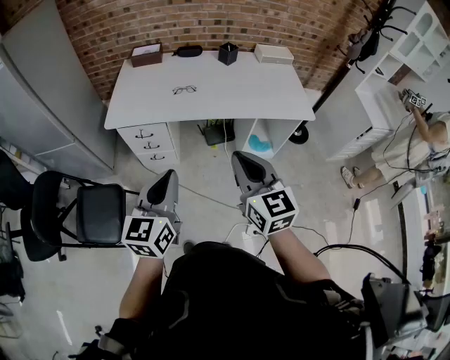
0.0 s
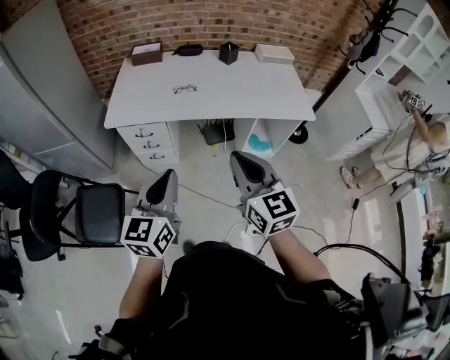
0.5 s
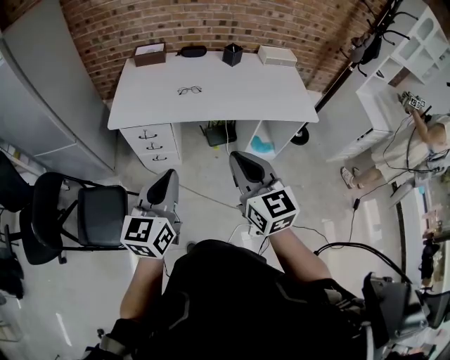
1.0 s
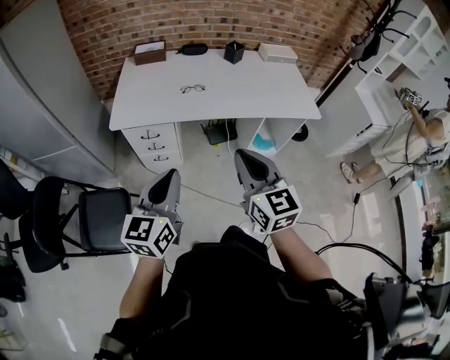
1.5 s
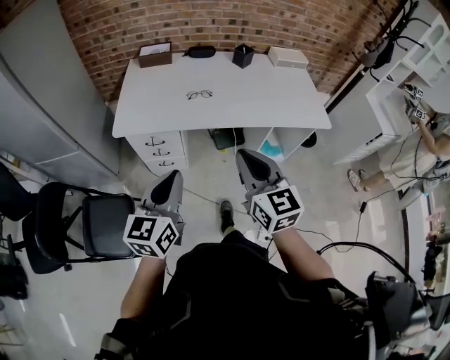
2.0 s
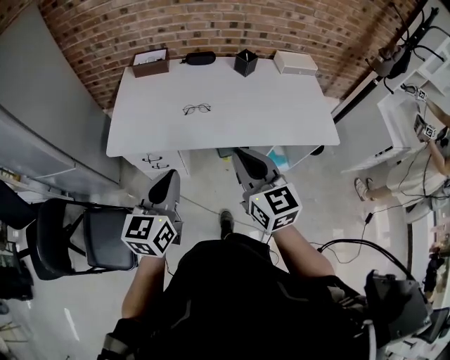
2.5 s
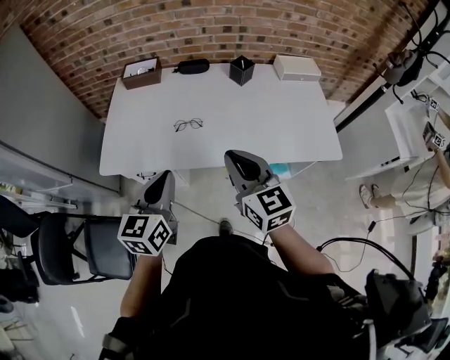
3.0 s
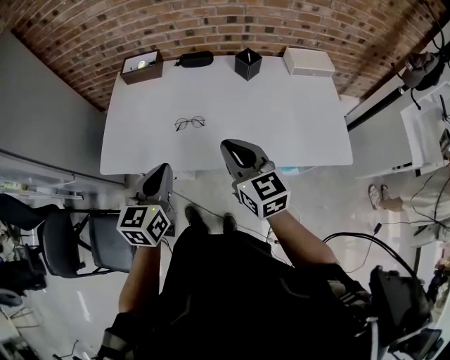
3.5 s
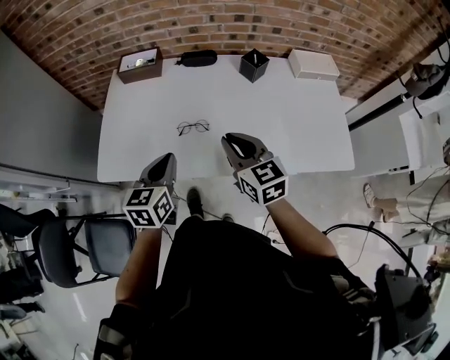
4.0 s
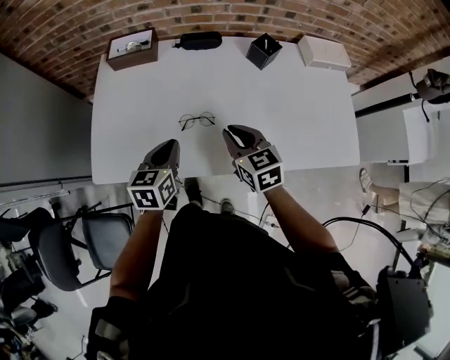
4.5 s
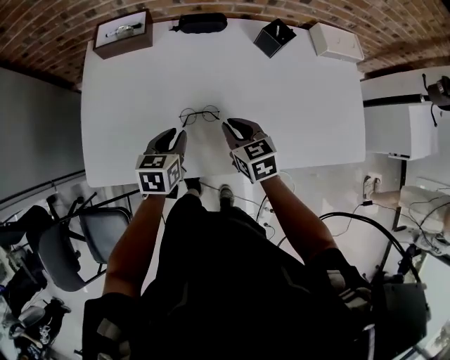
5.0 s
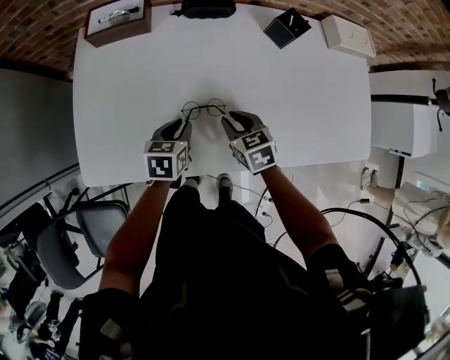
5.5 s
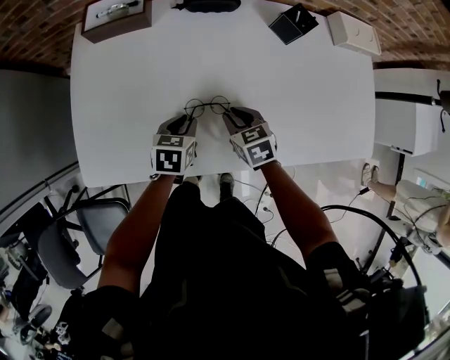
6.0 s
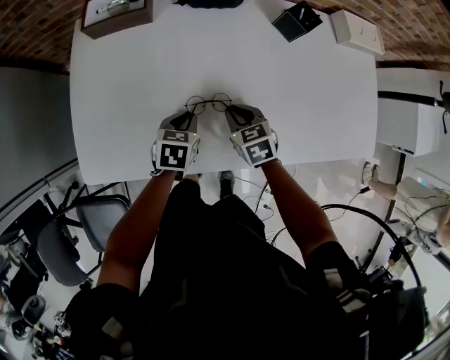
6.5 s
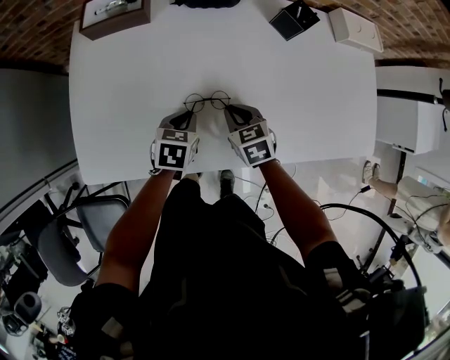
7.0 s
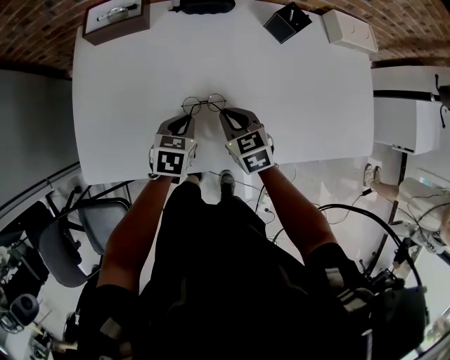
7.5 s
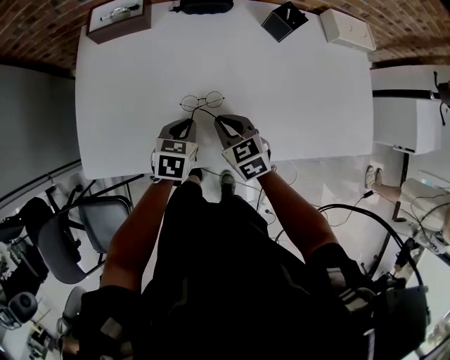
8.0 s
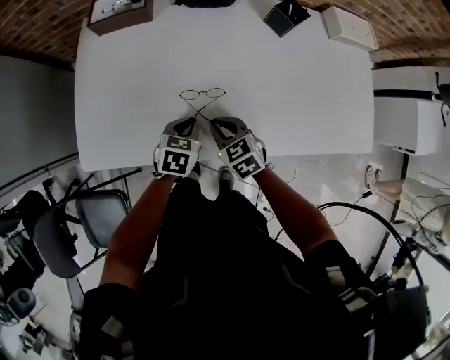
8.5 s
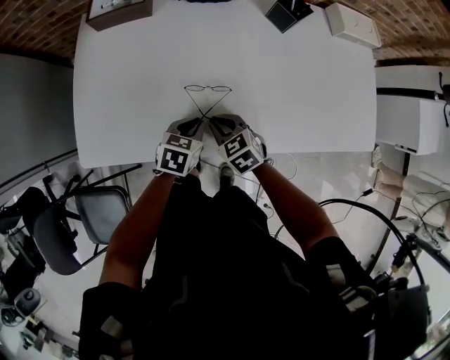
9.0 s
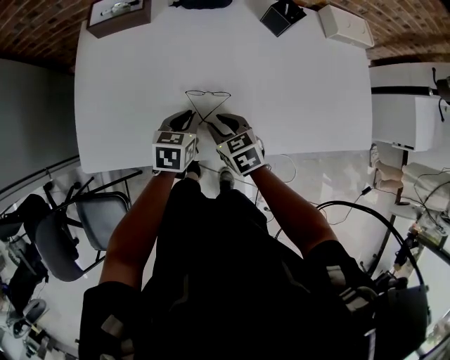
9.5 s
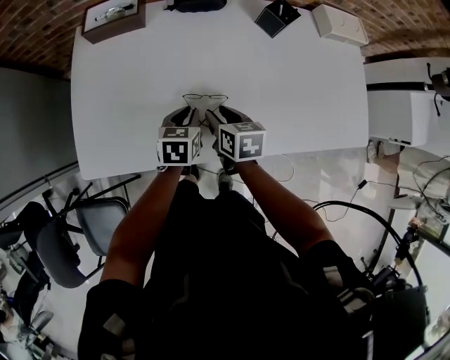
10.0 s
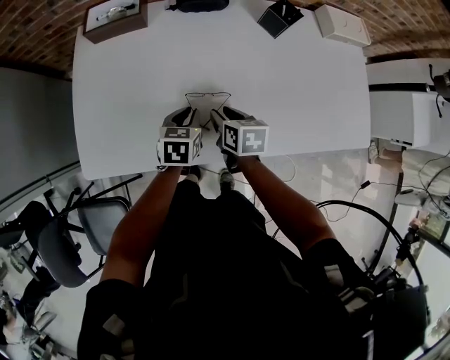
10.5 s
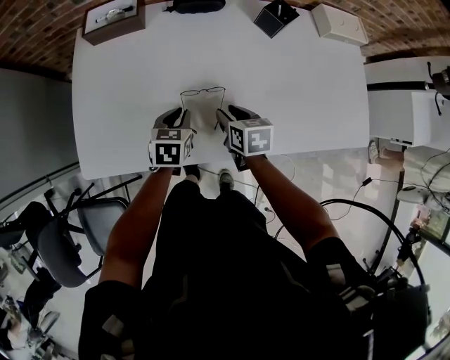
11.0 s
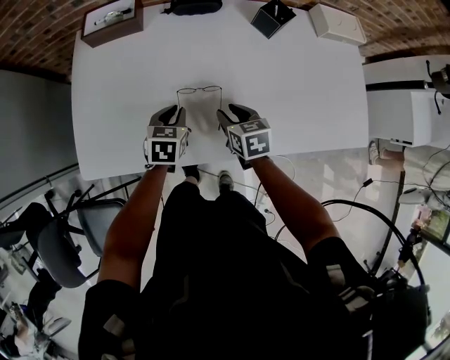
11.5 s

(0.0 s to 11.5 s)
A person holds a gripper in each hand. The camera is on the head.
0.0 s - 2.0 s: Both grippers travel together forward and to the left, roughly 10 cm.
2.0 s - 4.0 s: The grippers both shift forward by roughly 35 cm.
4.0 s - 6.0 s: The two grippers go approximately 30 cm downward and forward. The left gripper turns by approximately 30 degrees. The right gripper angles its fingers downward, by approximately 30 degrees.
6.0 s - 7.5 s: The grippers make only small movements.
7.5 s - 9.5 s: The right gripper travels backward by approximately 5 cm.
9.5 s - 11.5 s: The right gripper goes approximately 5 cm to the right.

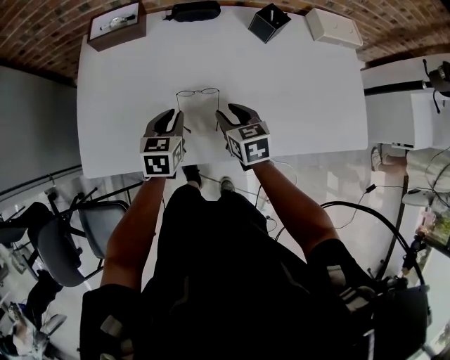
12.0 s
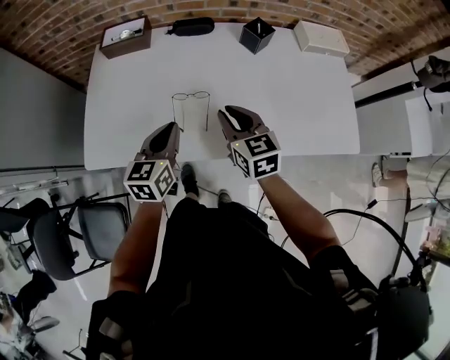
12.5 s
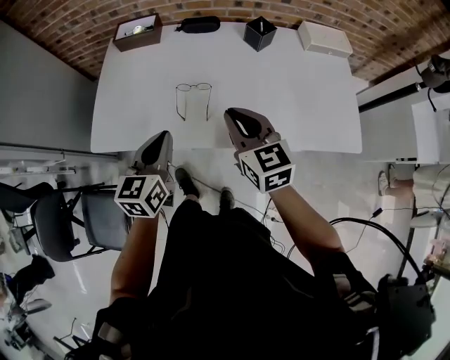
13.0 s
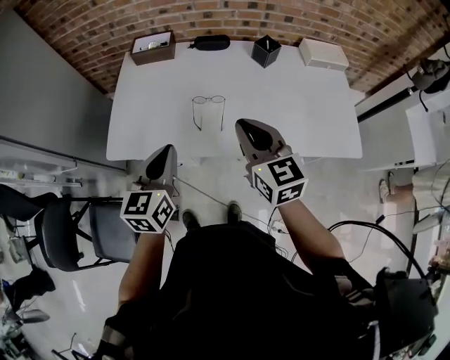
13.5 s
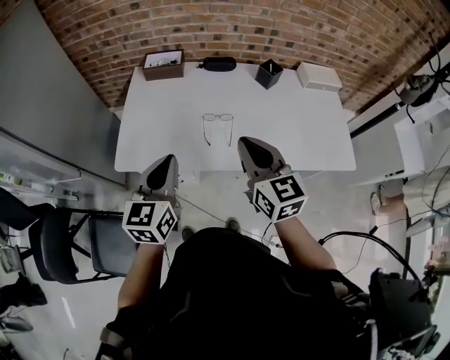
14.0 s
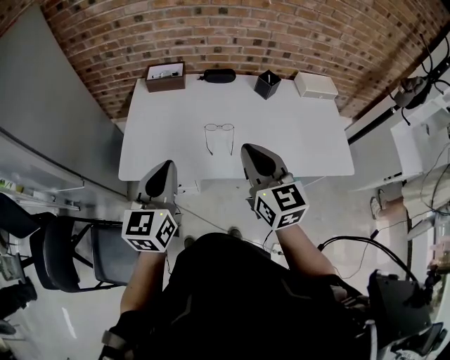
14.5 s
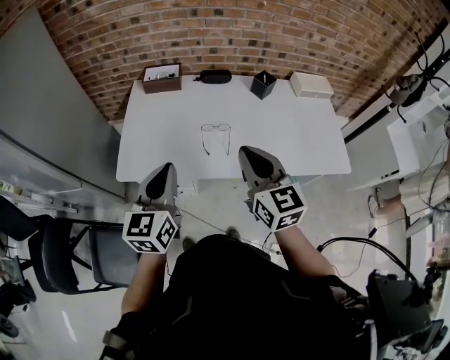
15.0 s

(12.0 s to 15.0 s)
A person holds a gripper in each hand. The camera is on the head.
12.0 s - 13.5 s: The grippers both shift upward and backward by roughly 30 cm. The right gripper changes its angle by about 30 degrees, and closes its fingers. Meanwhile the left gripper changes its angle by approximately 30 degrees.
13.5 s - 15.0 s: The two grippers go approximately 10 cm to the left and upward.

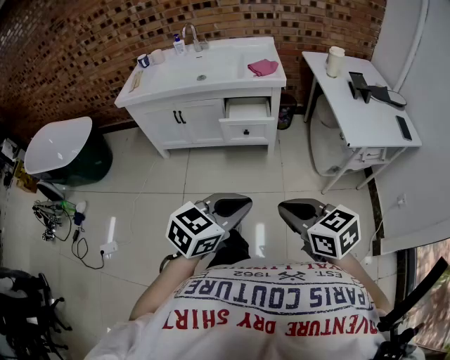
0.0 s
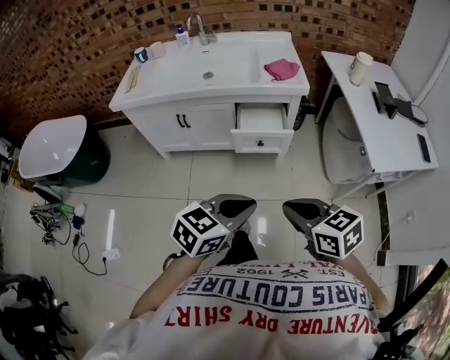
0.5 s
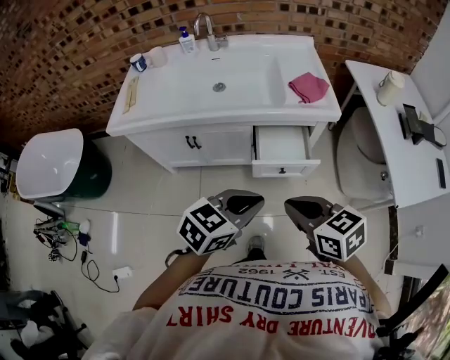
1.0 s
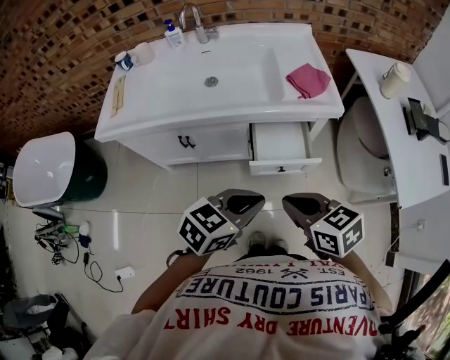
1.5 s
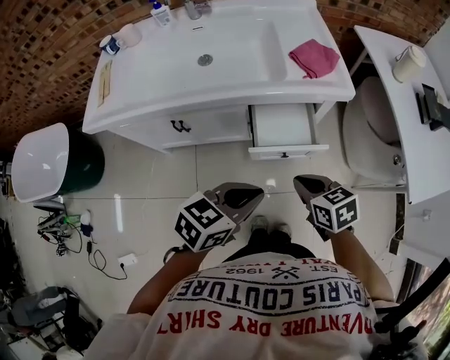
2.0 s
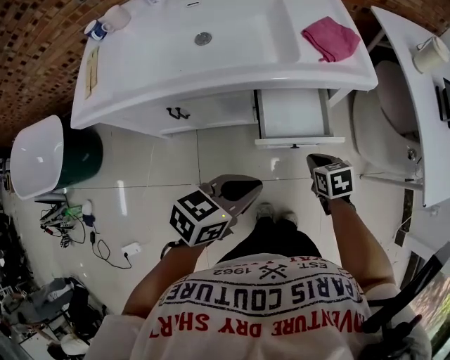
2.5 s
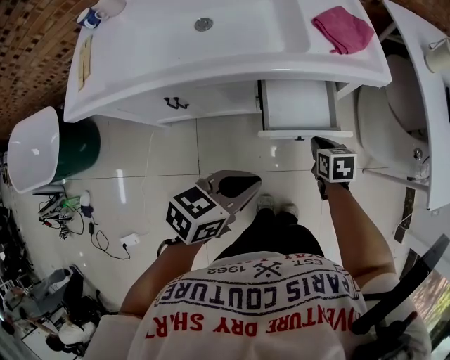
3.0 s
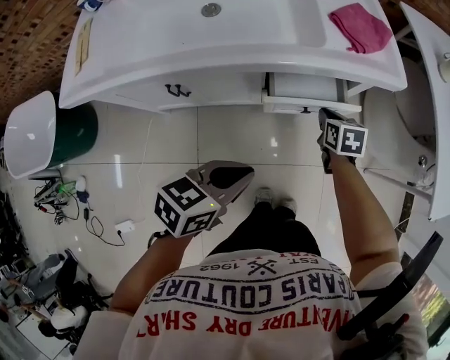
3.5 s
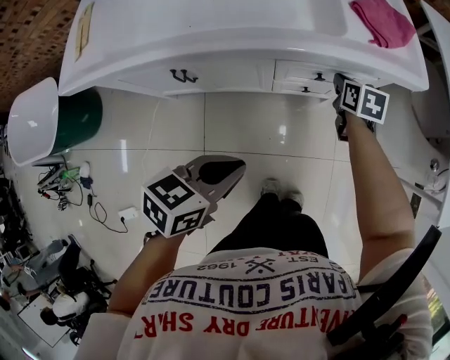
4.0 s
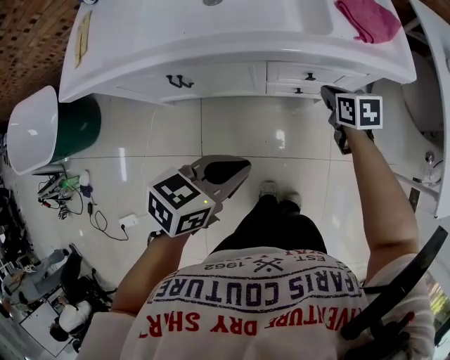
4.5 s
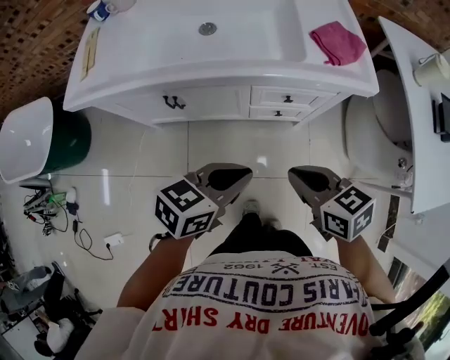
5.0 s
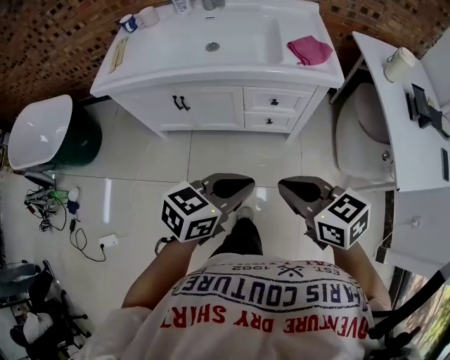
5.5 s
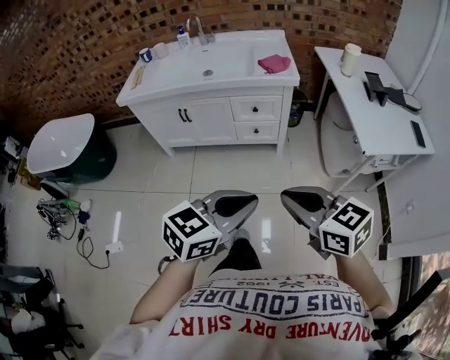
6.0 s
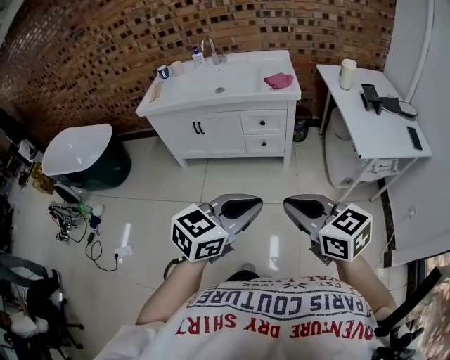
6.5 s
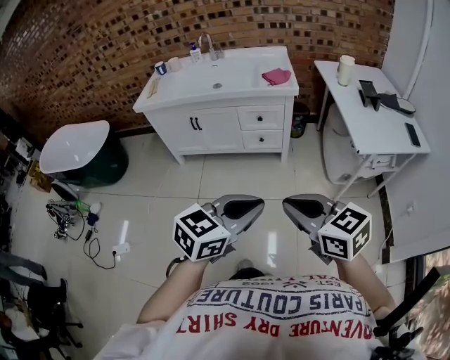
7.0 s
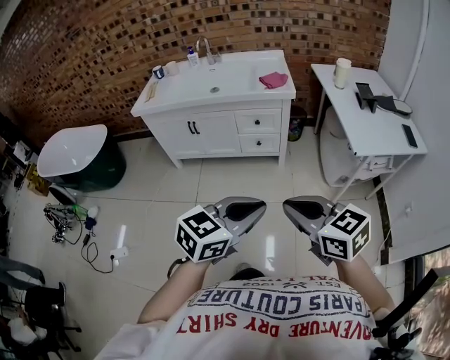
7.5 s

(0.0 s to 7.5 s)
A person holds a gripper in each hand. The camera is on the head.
0.0 s - 2.0 s: Both grippers are carried forward, some 50 cm. The right gripper turns by some 20 degrees.
2.0 s - 4.0 s: The right gripper travels forward and downward by approximately 30 cm, and turns by some 30 degrees, while the left gripper is displaced downward and to the left by roughly 15 cm.
4.0 s - 5.5 s: The left gripper moves backward, upward and to the right, about 25 cm. The right gripper travels backward and upward by about 50 cm, and turns by about 50 degrees.
5.5 s - 7.5 s: Both grippers travel together backward, approximately 35 cm.

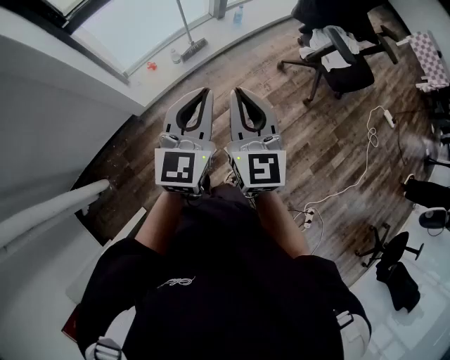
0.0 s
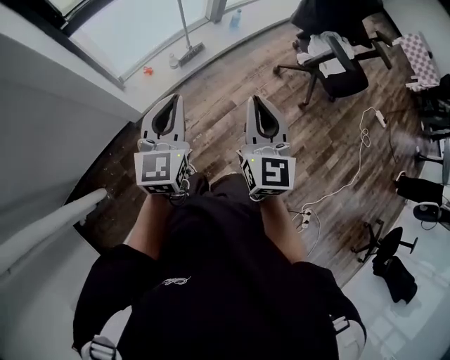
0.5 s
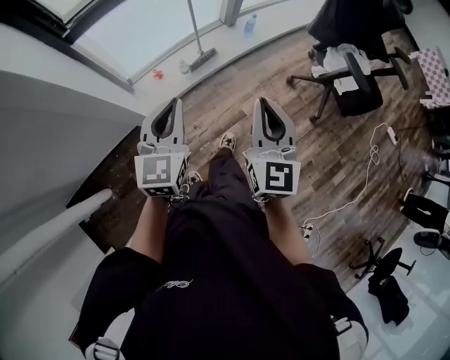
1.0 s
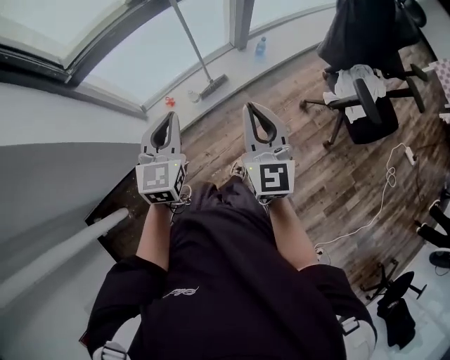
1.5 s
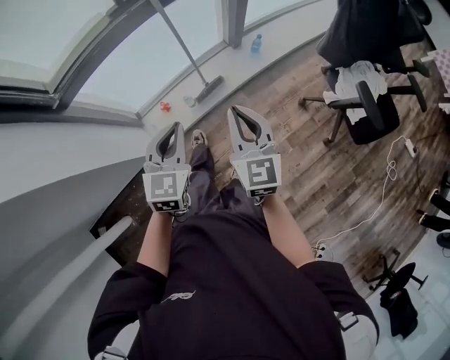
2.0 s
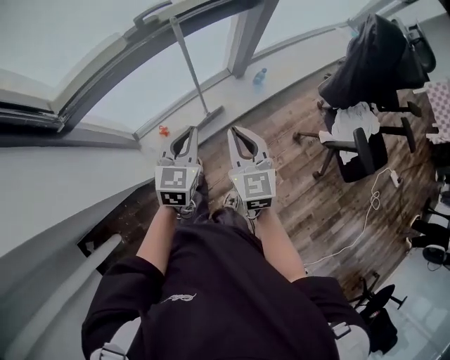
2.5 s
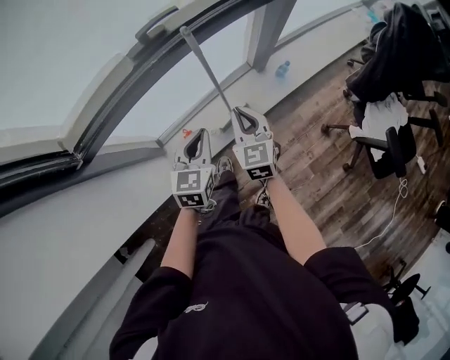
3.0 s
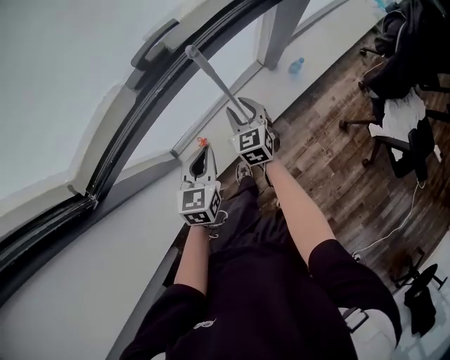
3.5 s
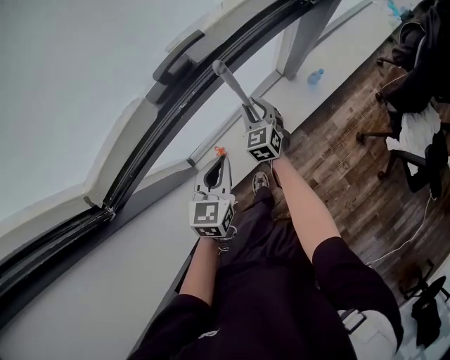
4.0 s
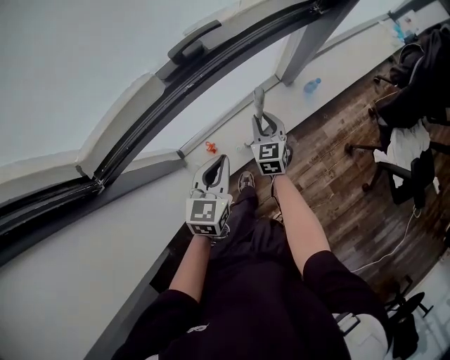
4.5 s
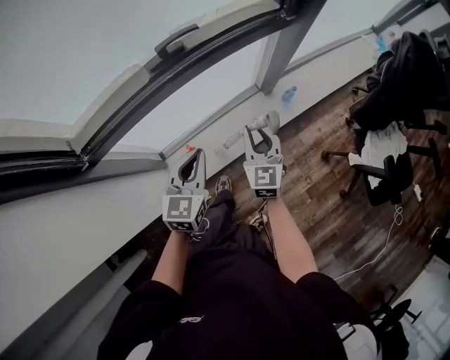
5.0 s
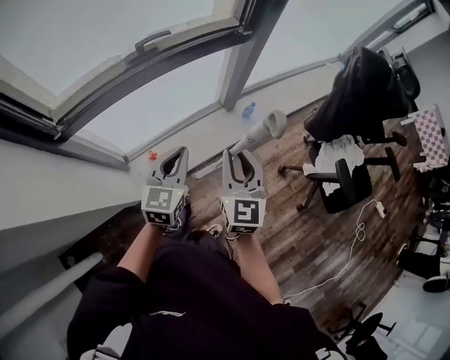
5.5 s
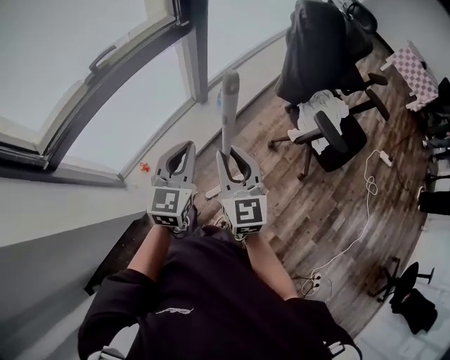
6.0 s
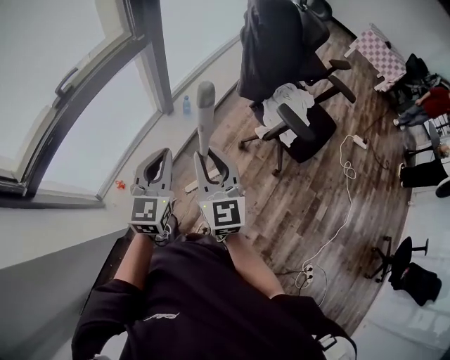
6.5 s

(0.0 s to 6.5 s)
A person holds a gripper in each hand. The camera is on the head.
0.0 s - 2.0 s: Both grippers travel together forward, about 30 cm. The left gripper rotates approximately 20 degrees.
2.0 s - 4.5 s: The left gripper is displaced forward, to the left and downward by roughly 30 cm. The right gripper is displaced forward, downward and to the left by some 40 cm.
4.5 s - 6.5 s: The left gripper moves to the right, upward and backward, about 40 cm, and changes its angle by approximately 30 degrees; the right gripper travels upward, to the right and backward by approximately 50 cm, and rotates roughly 30 degrees.
